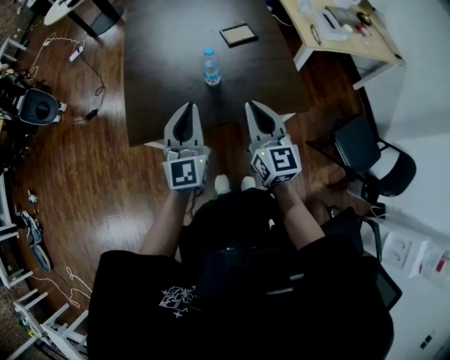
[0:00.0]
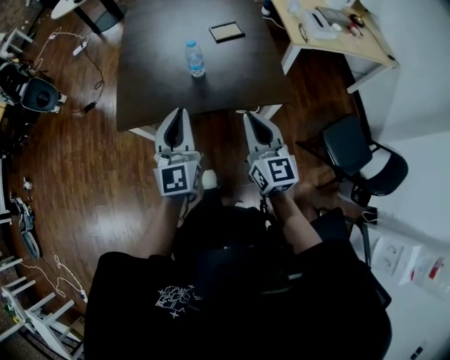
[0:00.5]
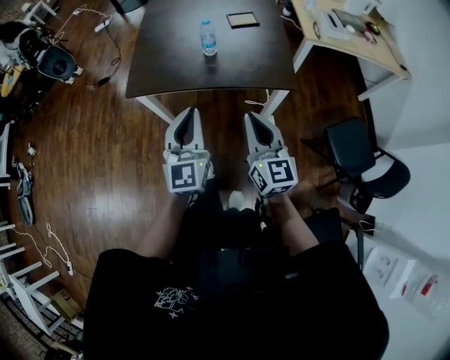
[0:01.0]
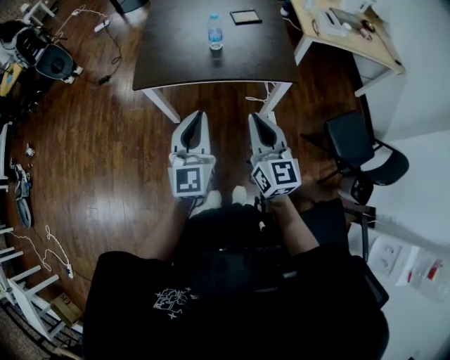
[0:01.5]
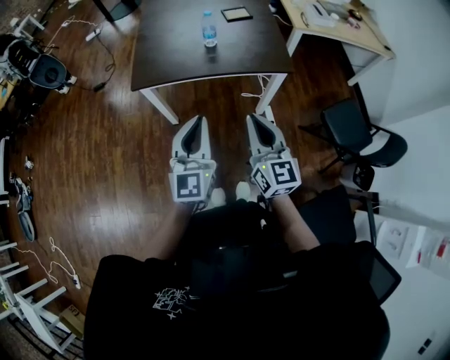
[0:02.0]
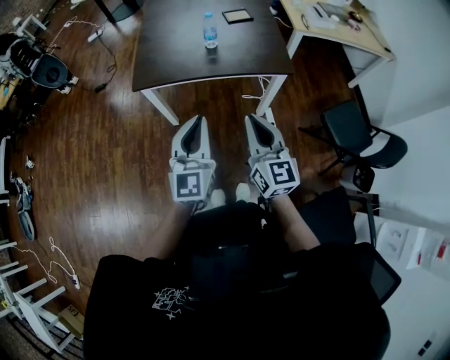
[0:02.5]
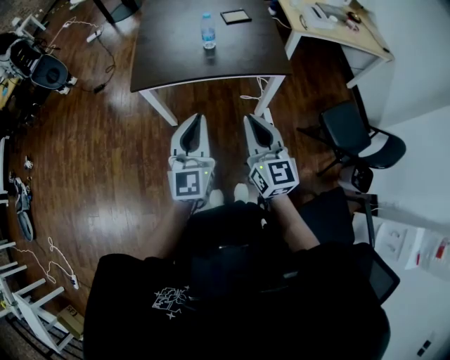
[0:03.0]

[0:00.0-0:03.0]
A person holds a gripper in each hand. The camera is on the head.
0:00.0 to 0:01.5: The two grippers go some 25 cm backward.
0:01.5 to 0:03.0: The grippers move only a little.

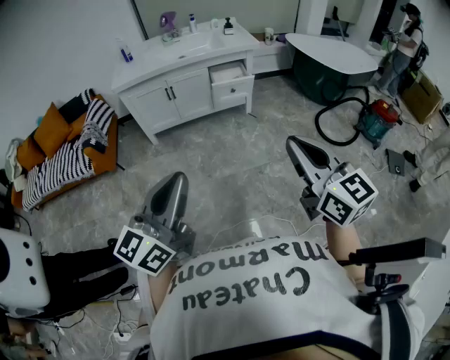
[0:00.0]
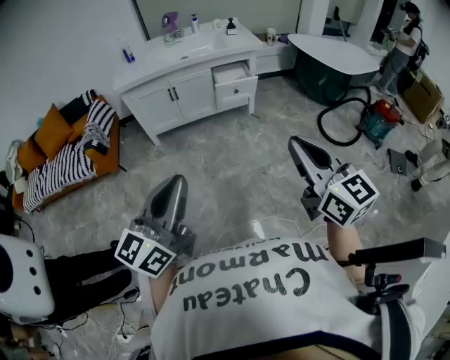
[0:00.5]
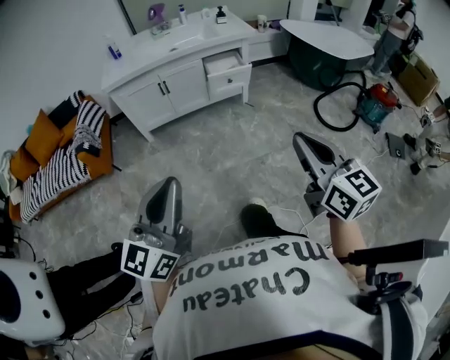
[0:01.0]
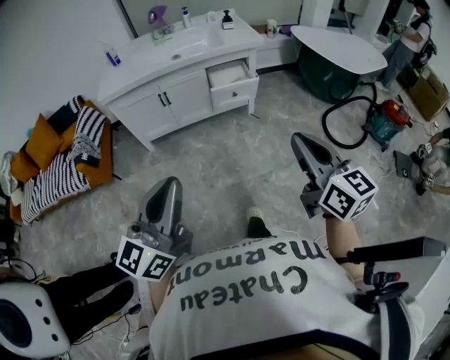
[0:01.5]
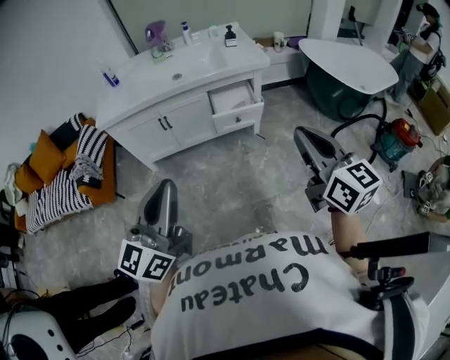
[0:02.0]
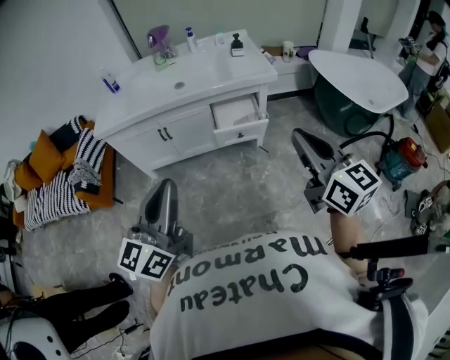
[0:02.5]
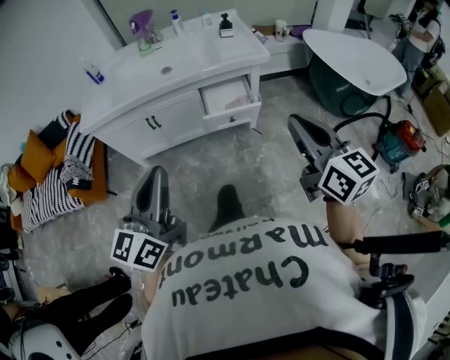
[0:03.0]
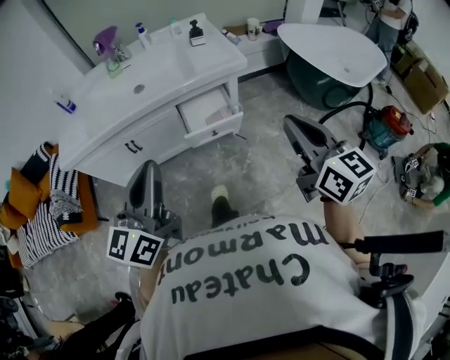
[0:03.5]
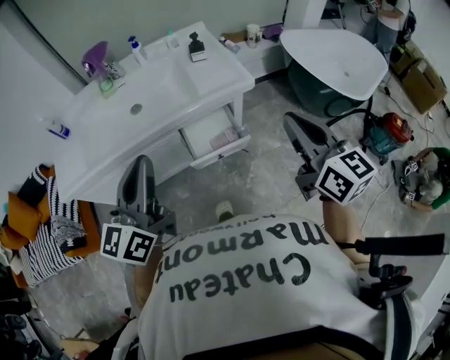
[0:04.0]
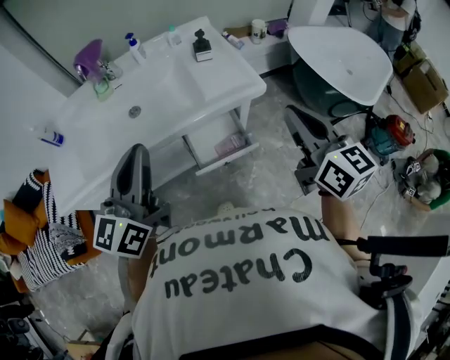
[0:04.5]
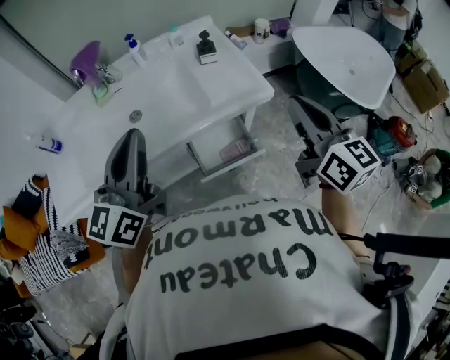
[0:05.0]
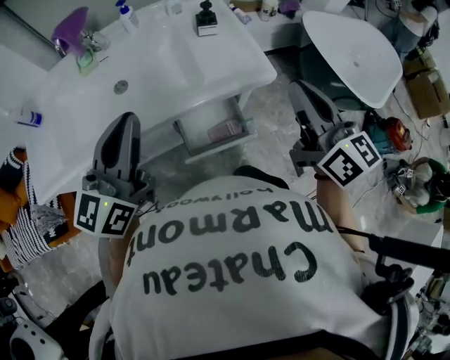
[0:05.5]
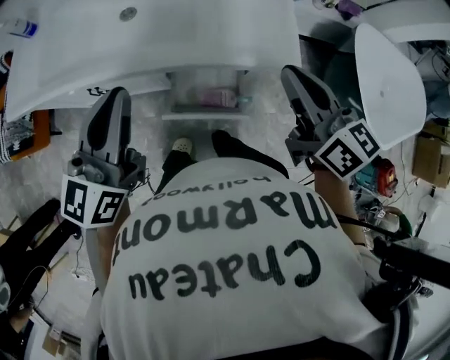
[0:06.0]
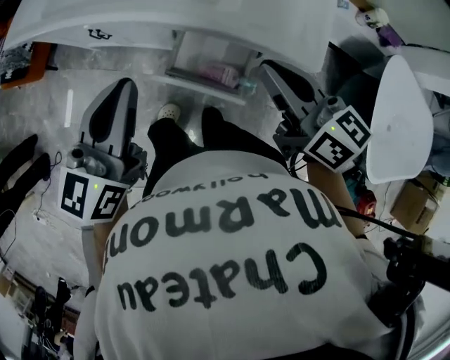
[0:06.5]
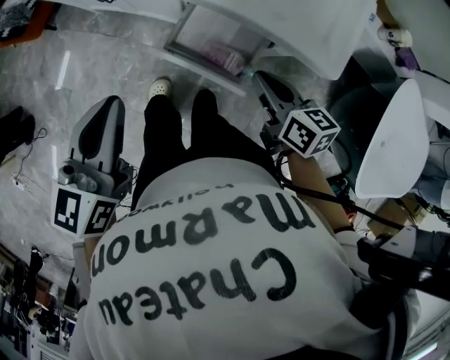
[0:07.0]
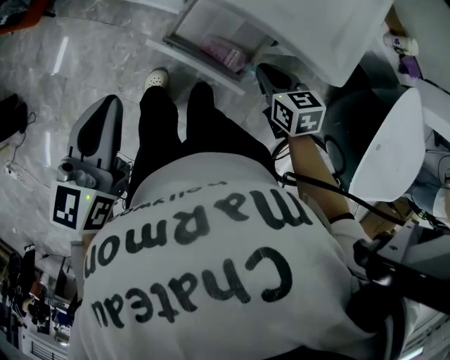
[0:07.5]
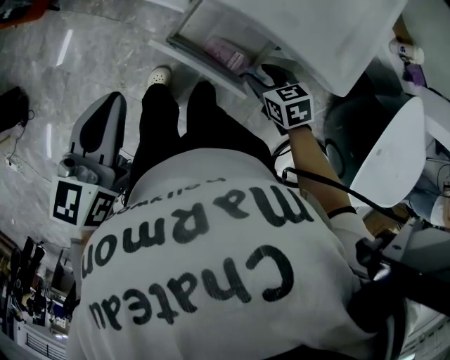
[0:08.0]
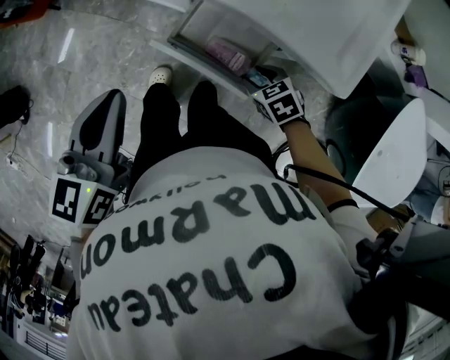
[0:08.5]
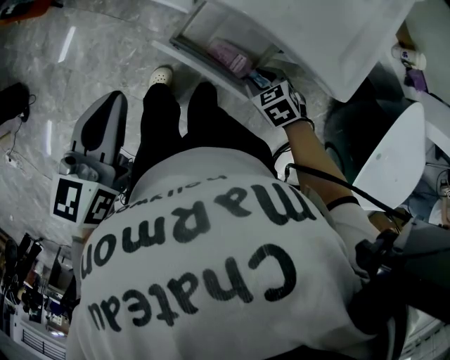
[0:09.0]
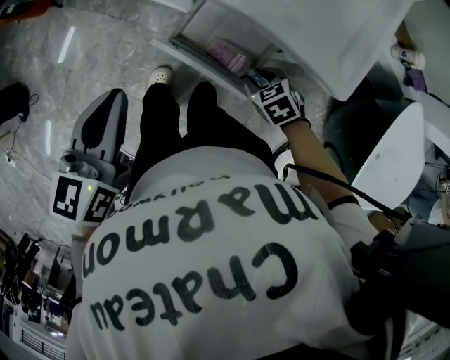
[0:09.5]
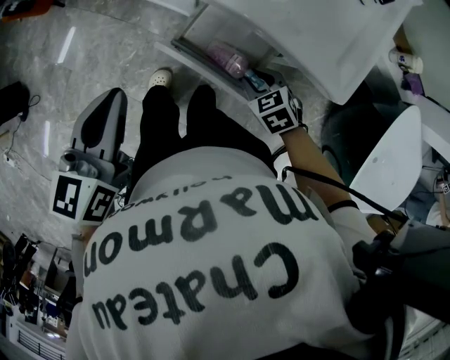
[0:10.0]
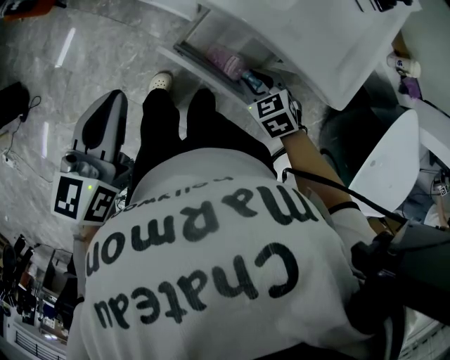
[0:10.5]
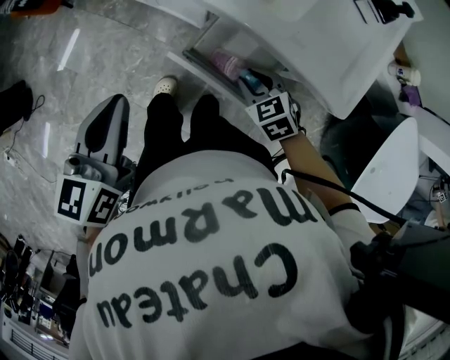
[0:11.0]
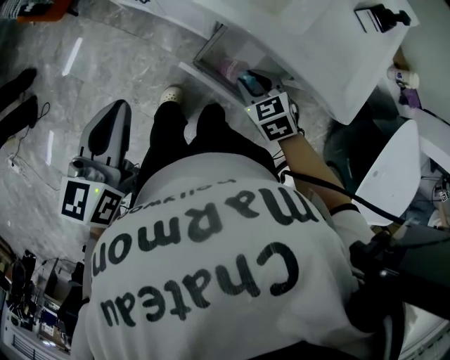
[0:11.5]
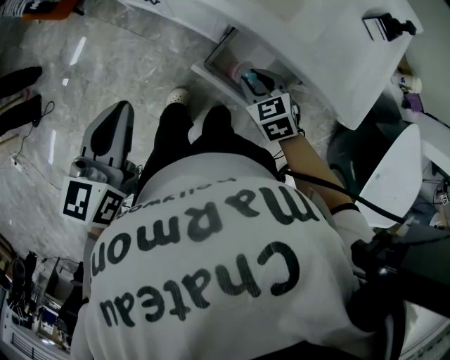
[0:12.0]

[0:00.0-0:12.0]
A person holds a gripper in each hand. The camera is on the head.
0:00.0 to 0:02.0: Both grippers move forward, about 35 cm.
0:02.0 to 0:04.0: The grippers both shift forward by about 35 cm.
0:04.0 to 0:06.0: The left gripper ends up approximately 20 cm from where it was; the right gripper ends up about 25 cm from where it was, and rotates some 30 degrees.
0:06.0 to 0:08.0: The left gripper heads downward, covering some 15 cm, and changes its angle by some 40 degrees. Meanwhile the right gripper shifts some 35 cm downward, points its fingers about 50 degrees further downward, and opens.
0:10.0 to 0:12.0: The right gripper goes approximately 15 cm to the left, forward and upward. Meanwhile the left gripper moves to the left, some 10 cm.

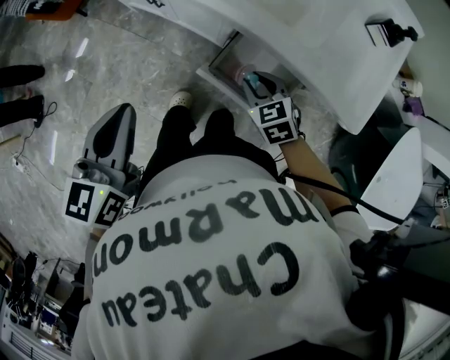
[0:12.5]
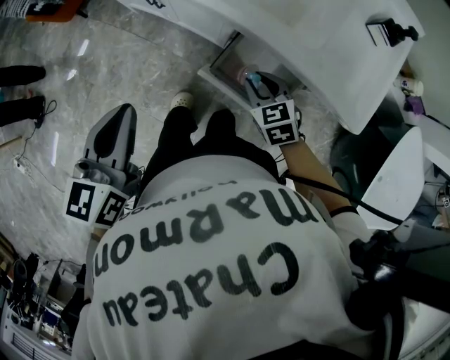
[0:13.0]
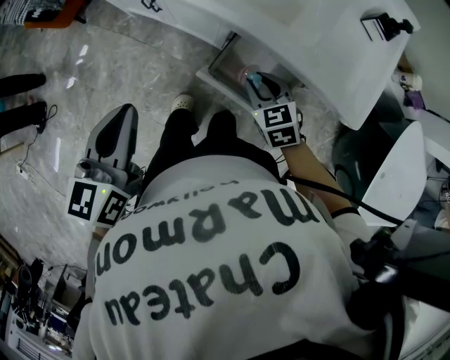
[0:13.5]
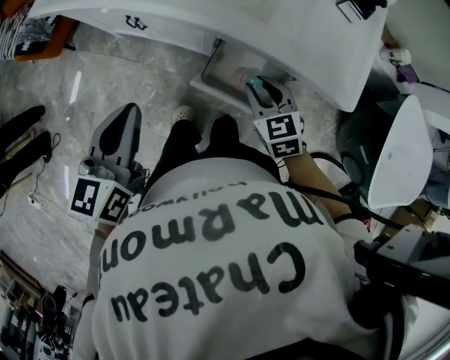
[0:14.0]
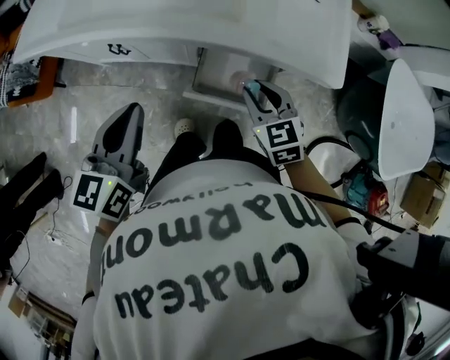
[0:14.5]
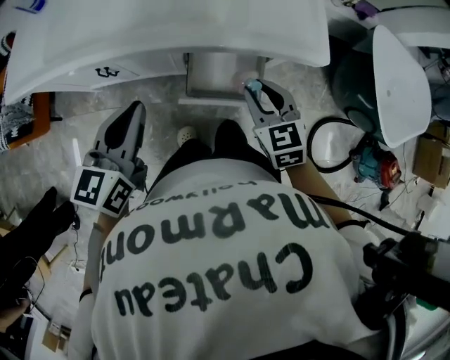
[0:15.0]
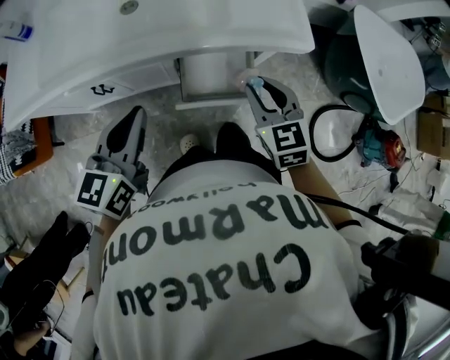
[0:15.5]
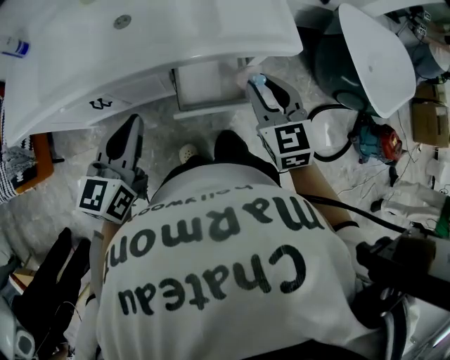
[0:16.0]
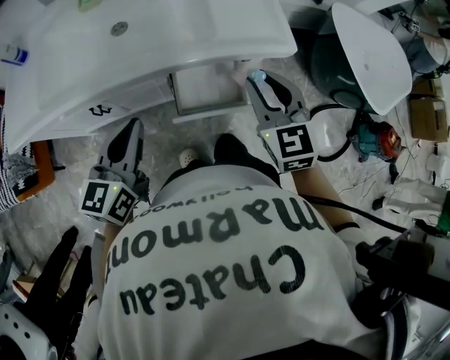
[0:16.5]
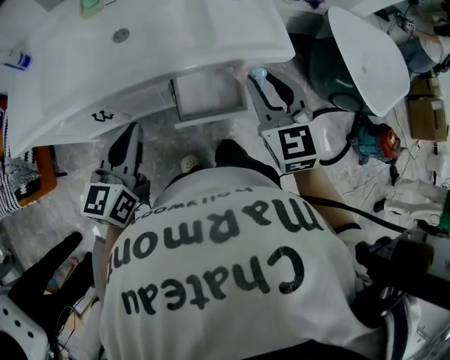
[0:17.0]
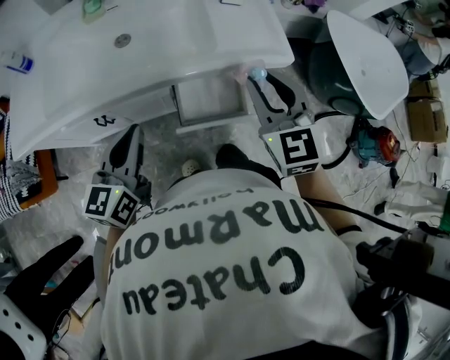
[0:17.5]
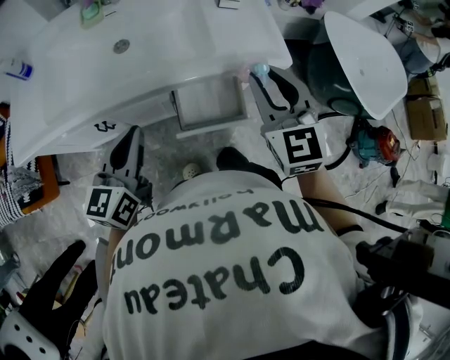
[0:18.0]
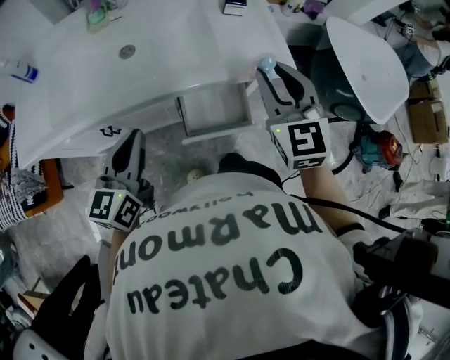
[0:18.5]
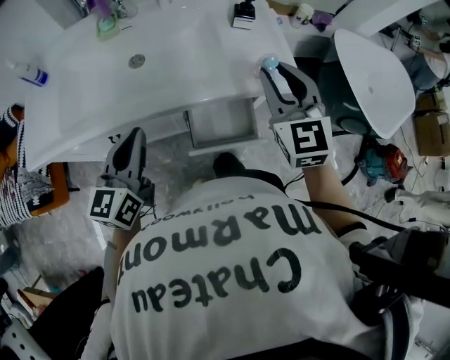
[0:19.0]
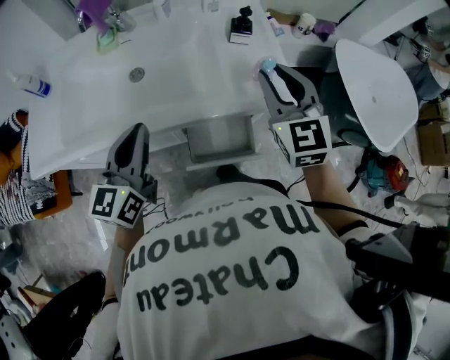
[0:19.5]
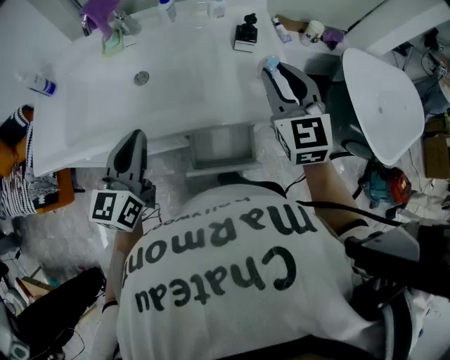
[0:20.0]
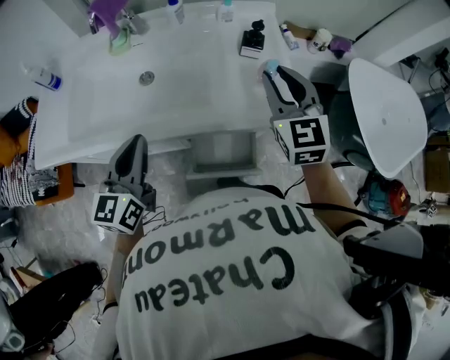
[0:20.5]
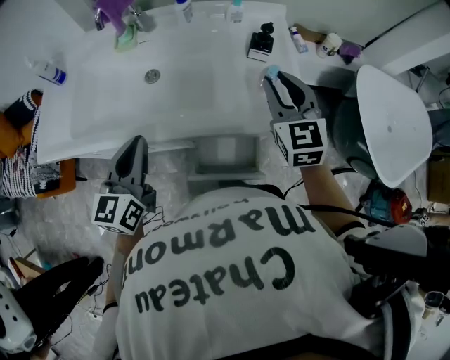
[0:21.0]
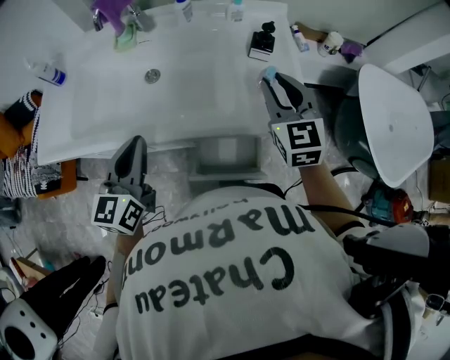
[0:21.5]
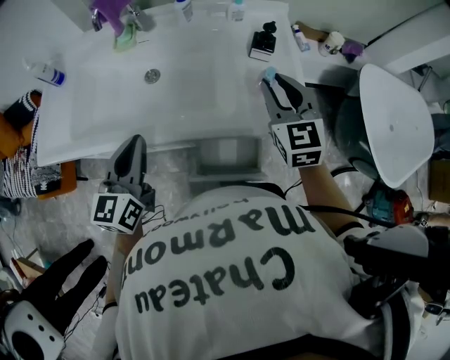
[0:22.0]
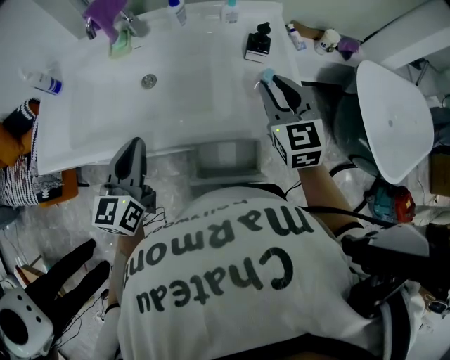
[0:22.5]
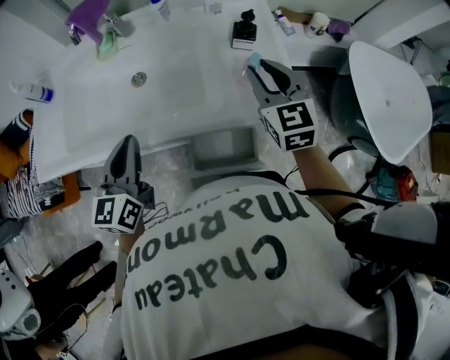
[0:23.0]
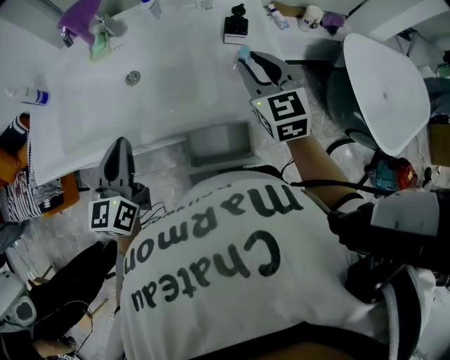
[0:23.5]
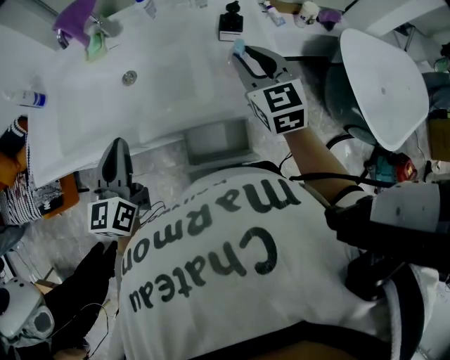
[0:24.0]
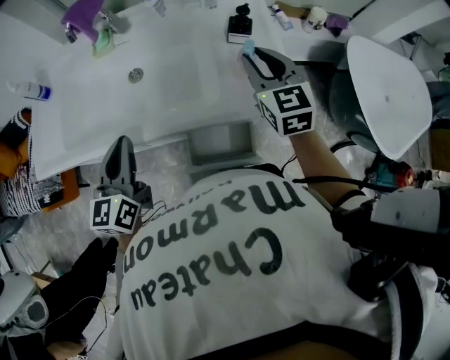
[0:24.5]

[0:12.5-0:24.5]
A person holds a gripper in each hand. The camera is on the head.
0:12.5 to 0:14.5: The right gripper travels upward by about 10 cm, and turns by roughly 30 degrees. Meanwhile the left gripper travels forward by approximately 5 cm, and turns by about 20 degrees.
0:14.5 to 0:16.5: The left gripper rotates roughly 20 degrees, while the right gripper heads upward, covering some 15 cm, and turns by some 30 degrees.
0:16.5 to 0:18.5: The right gripper is displaced upward by about 10 cm.
0:18.5 to 0:20.5: The right gripper shifts some 15 cm forward. Meanwhile the left gripper moves forward, roughly 10 cm.
0:20.5 to 0:22.5: The right gripper shifts by some 5 cm.
0:22.5 to 0:24.5: There are only small adjustments of the grippers.
